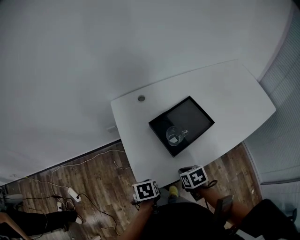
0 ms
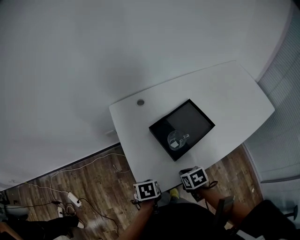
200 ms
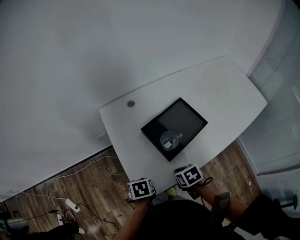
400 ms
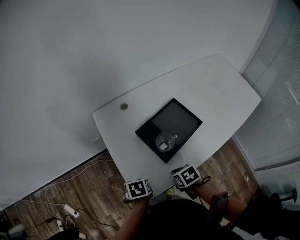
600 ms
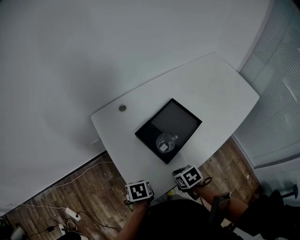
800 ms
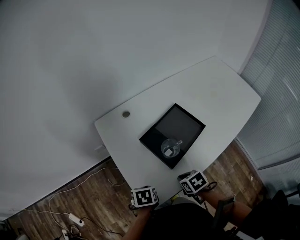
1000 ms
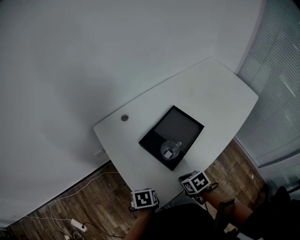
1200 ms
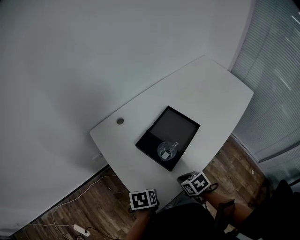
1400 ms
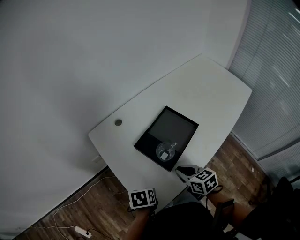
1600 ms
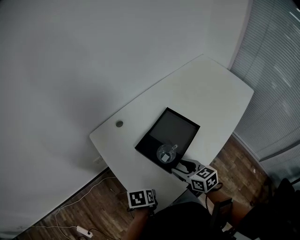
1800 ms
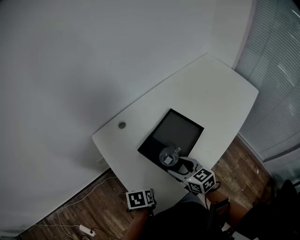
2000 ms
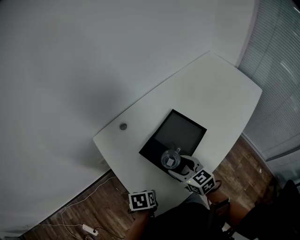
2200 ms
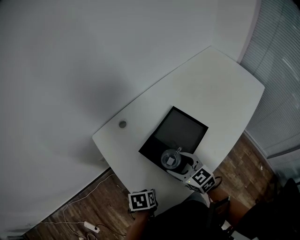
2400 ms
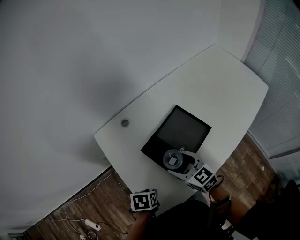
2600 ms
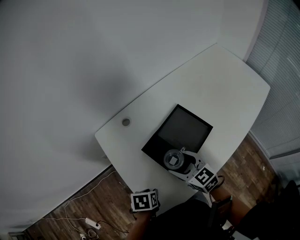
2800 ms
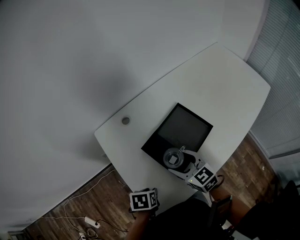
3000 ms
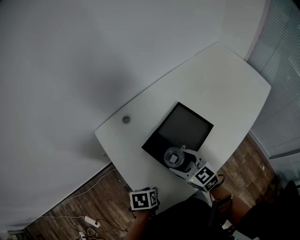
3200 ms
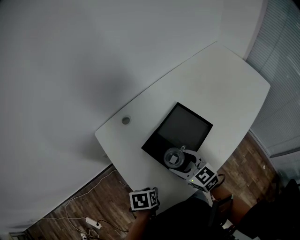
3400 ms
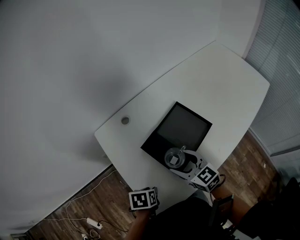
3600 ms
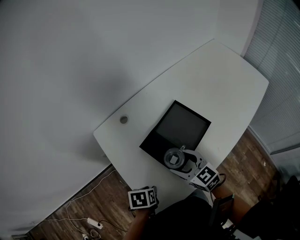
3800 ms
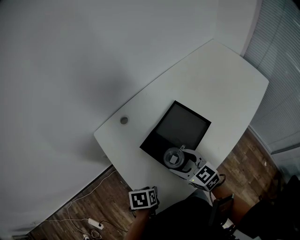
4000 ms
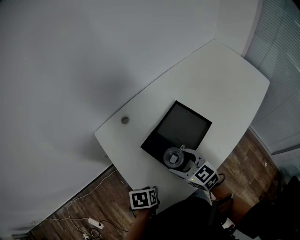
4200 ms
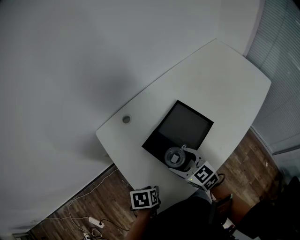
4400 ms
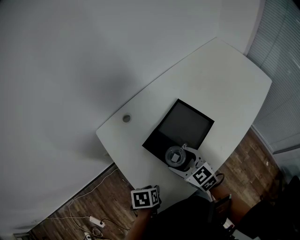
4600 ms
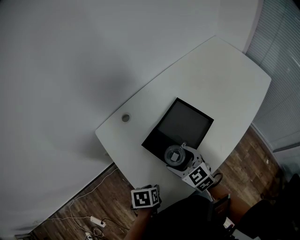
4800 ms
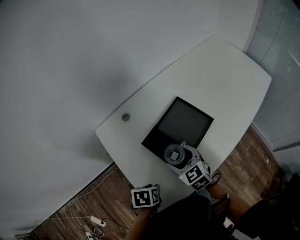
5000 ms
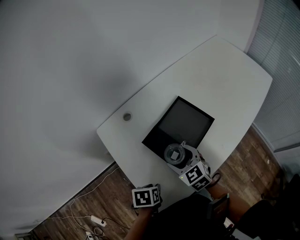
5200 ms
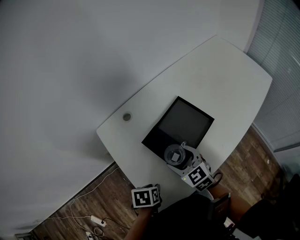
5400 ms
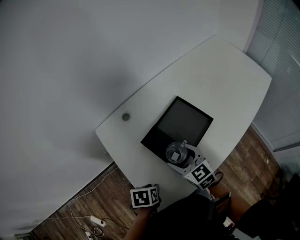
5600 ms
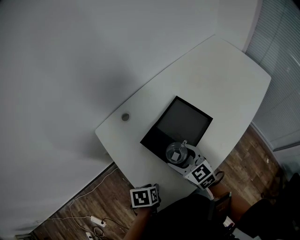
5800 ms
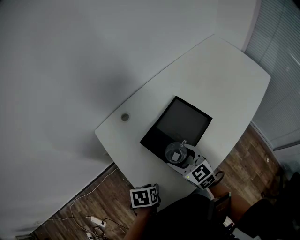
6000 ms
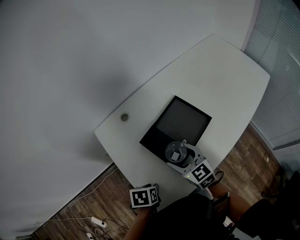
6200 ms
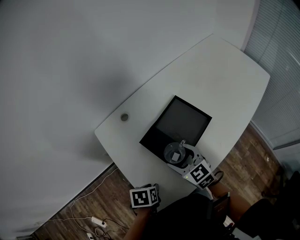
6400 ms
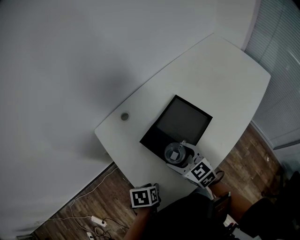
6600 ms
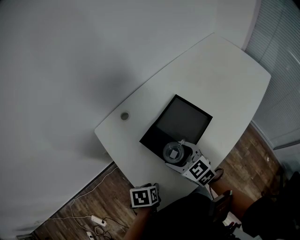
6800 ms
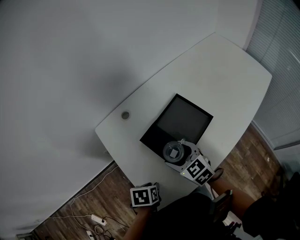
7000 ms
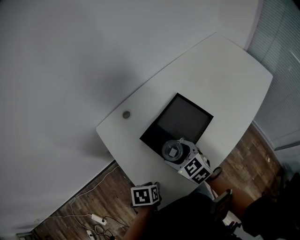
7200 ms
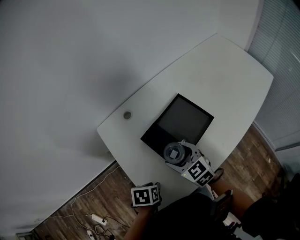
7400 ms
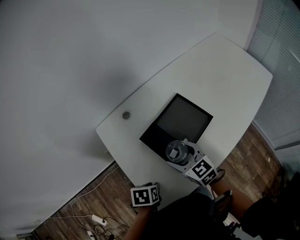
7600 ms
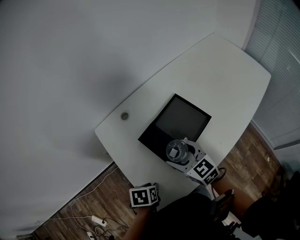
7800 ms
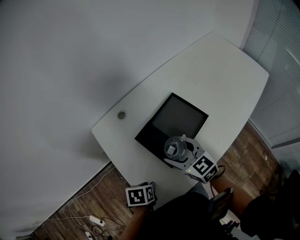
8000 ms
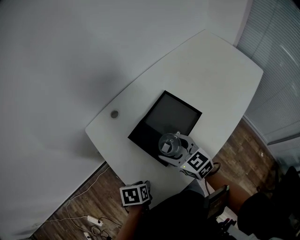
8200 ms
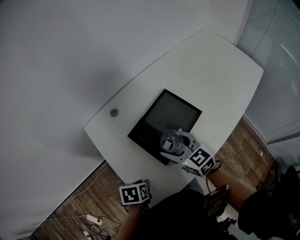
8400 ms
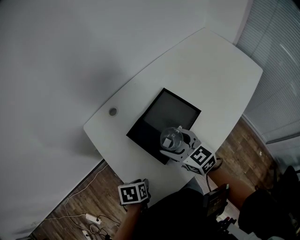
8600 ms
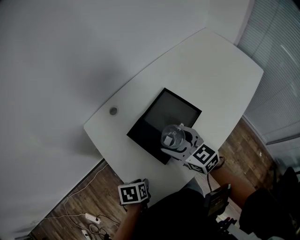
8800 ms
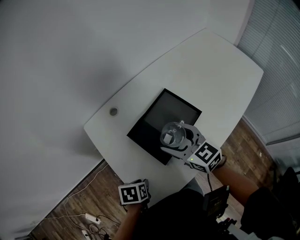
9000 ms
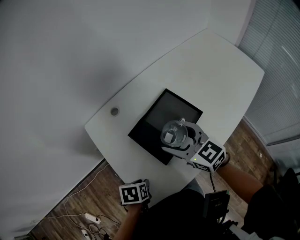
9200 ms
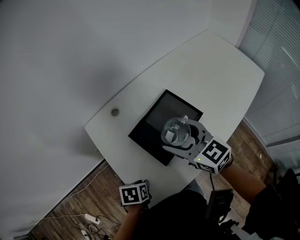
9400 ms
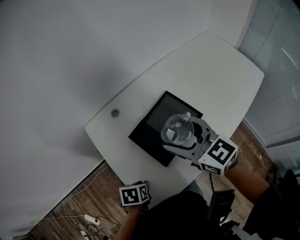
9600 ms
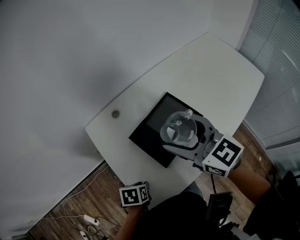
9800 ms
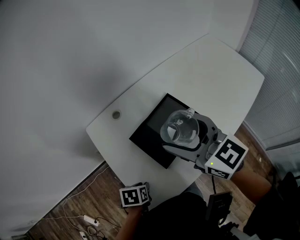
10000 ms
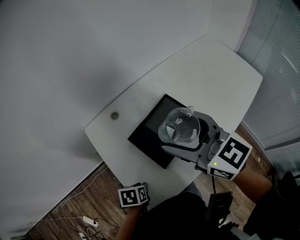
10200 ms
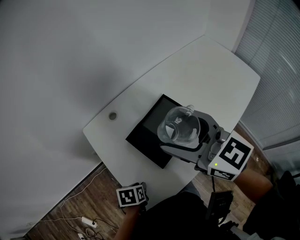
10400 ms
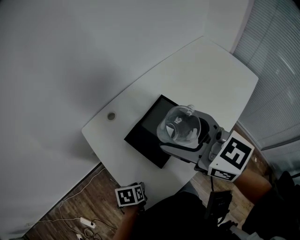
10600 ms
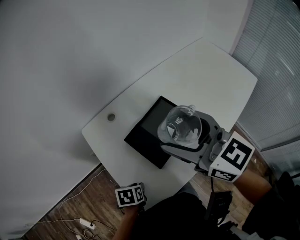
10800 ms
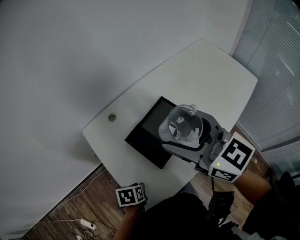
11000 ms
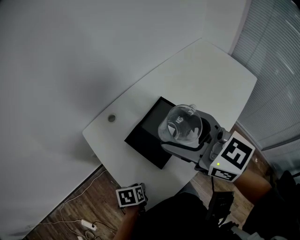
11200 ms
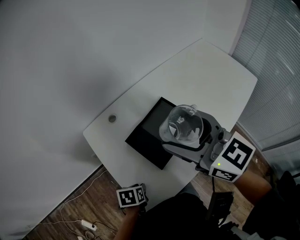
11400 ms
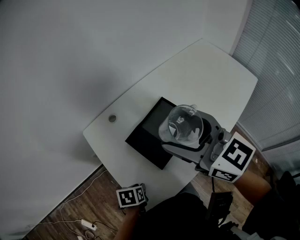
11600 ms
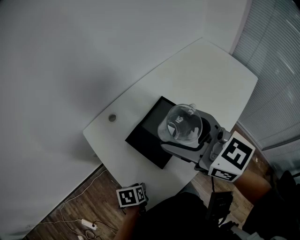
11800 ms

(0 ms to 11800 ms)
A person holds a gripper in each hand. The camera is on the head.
1400 ms - 3000 ms: The right gripper moves some 15 cm, angles its fingers upward, by some 30 degrees, and opens its fingers.
7400 ms - 8800 ms: The right gripper travels upward by approximately 5 cm.
8800 ms - 10400 ms: The right gripper is displaced upward by approximately 20 cm.

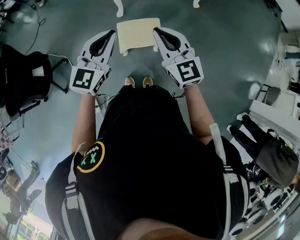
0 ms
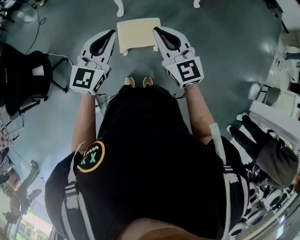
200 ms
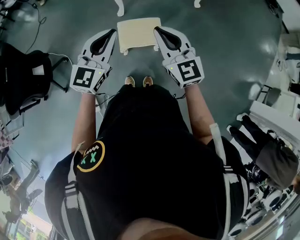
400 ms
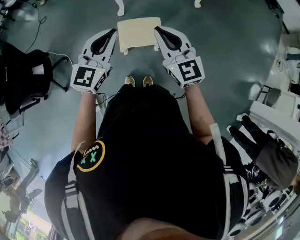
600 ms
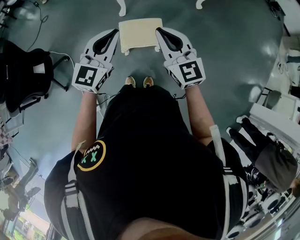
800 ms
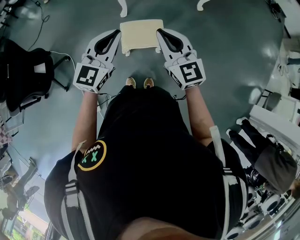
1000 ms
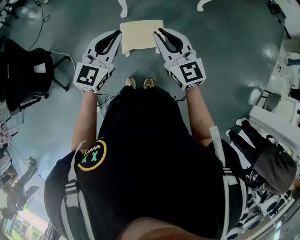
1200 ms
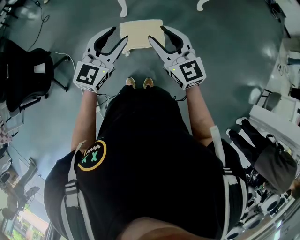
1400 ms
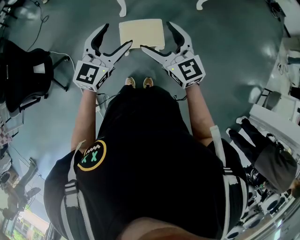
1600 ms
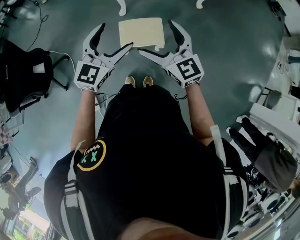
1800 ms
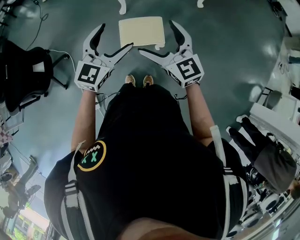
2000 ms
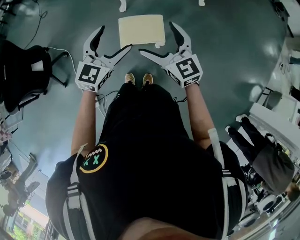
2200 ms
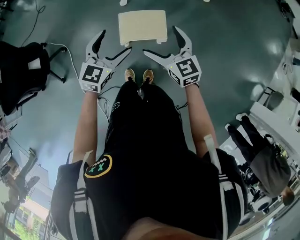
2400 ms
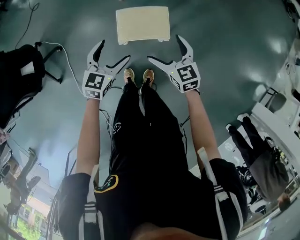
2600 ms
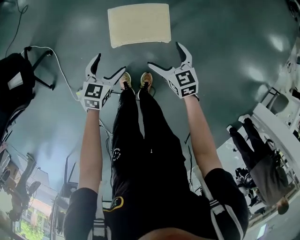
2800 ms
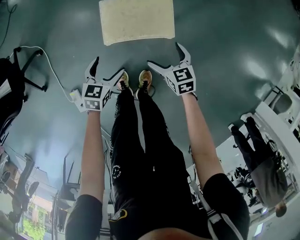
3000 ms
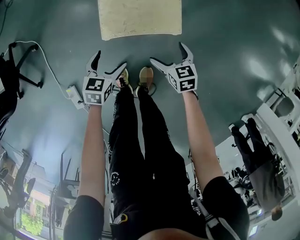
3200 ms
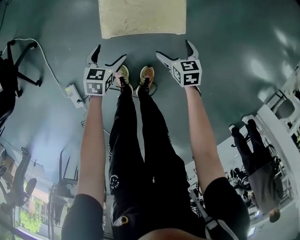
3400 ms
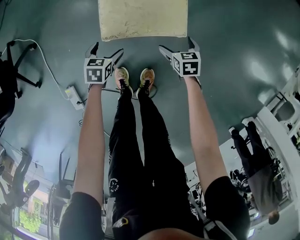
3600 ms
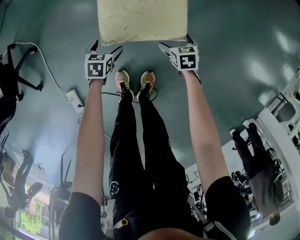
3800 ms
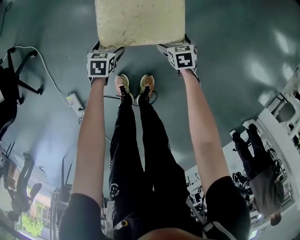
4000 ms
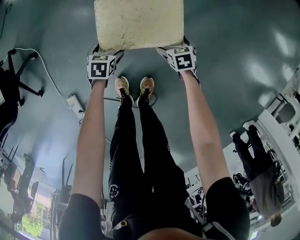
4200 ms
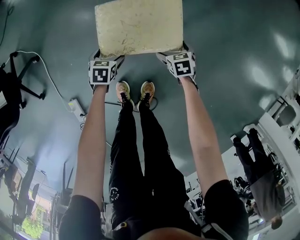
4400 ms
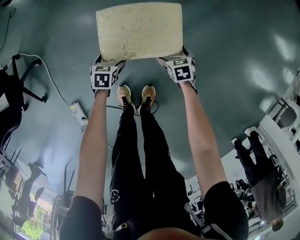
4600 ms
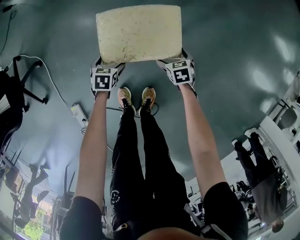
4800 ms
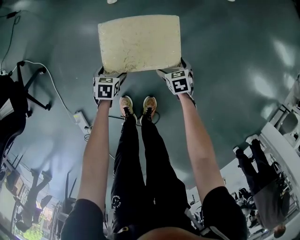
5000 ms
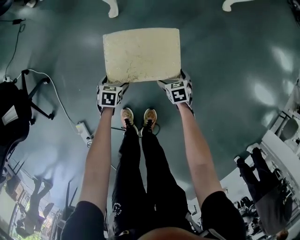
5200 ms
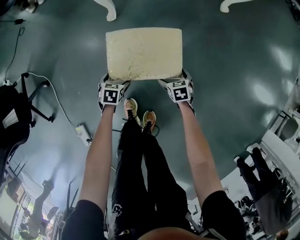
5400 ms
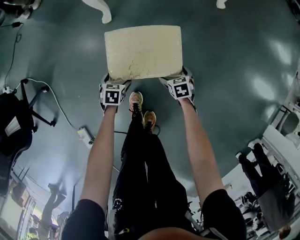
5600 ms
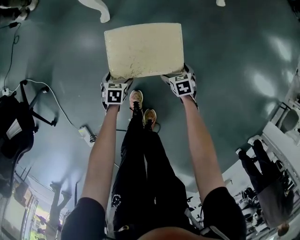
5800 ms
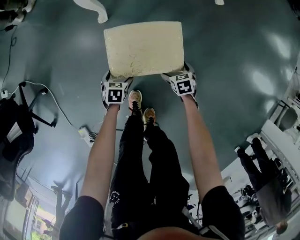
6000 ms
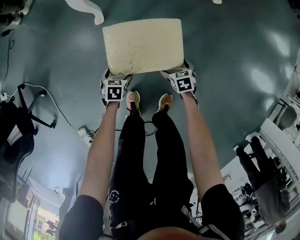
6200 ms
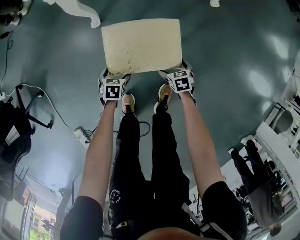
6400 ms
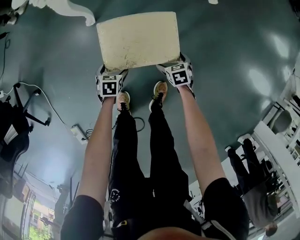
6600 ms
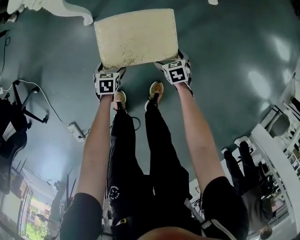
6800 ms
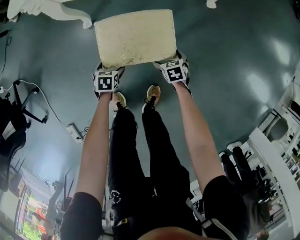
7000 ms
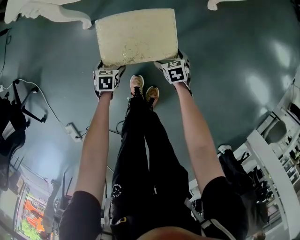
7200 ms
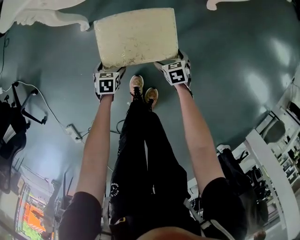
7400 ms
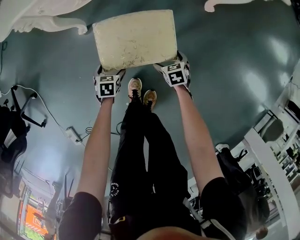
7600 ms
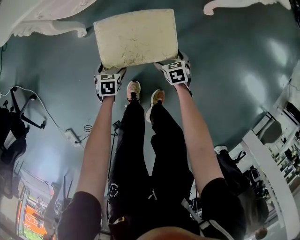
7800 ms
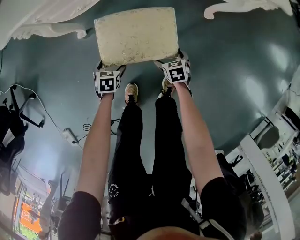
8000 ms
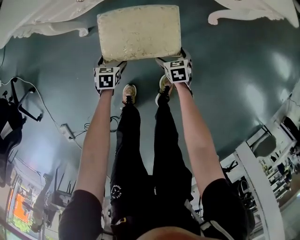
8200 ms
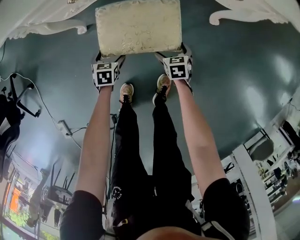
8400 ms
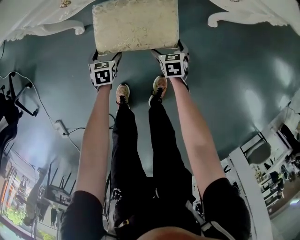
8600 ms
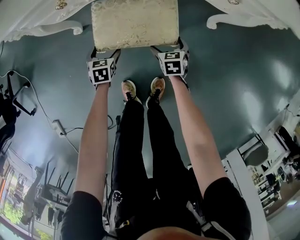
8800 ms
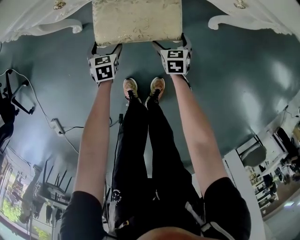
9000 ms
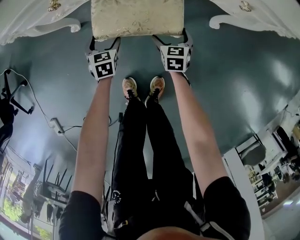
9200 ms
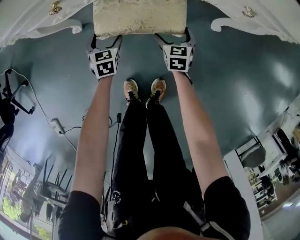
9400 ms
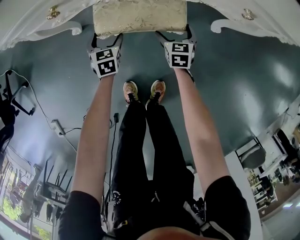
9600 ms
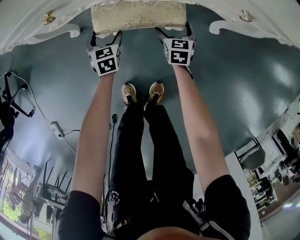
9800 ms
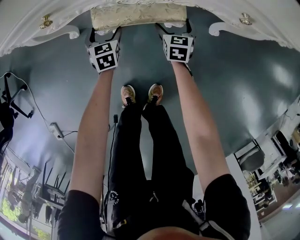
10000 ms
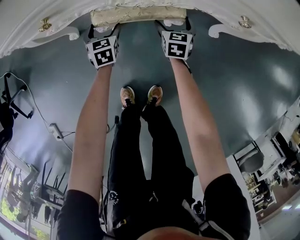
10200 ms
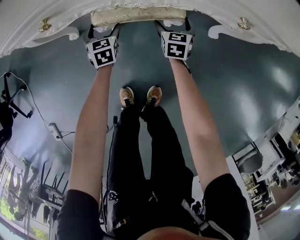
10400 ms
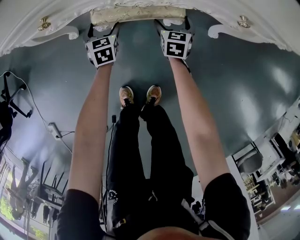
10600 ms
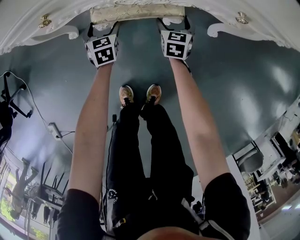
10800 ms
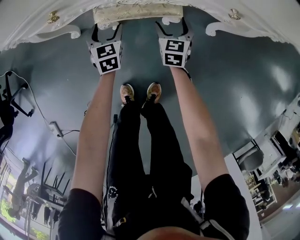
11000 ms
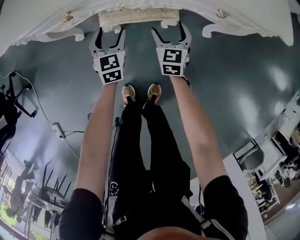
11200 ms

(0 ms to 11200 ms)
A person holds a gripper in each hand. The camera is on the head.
0 ms - 1600 ms: The left gripper opens. The right gripper opens up.
1600 ms - 3200 ms: The two grippers go approximately 60 cm downward. The left gripper tips its fingers downward by about 40 degrees, while the right gripper points its fingers roughly 40 degrees further downward.
3200 ms - 4800 ms: The two grippers go approximately 15 cm downward and forward.
4800 ms - 6400 ms: The grippers both shift forward and to the right by roughly 20 cm.
6400 ms - 8000 ms: Both grippers travel together forward and to the right, roughly 25 cm.
8000 ms - 9600 ms: Both grippers travel together forward, approximately 20 cm. The left gripper changes its angle by approximately 30 degrees.
9600 ms - 11200 ms: Both grippers travel together upward, some 15 cm.

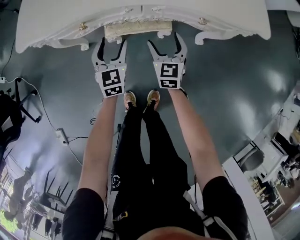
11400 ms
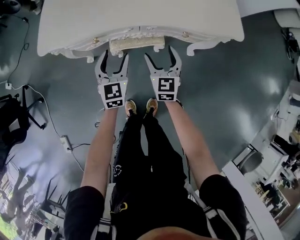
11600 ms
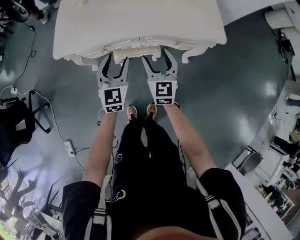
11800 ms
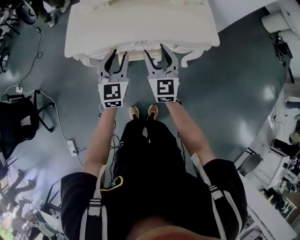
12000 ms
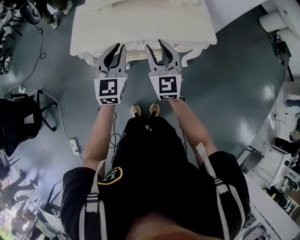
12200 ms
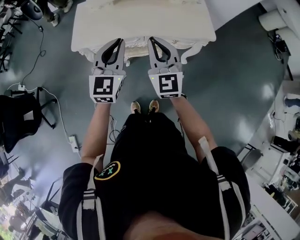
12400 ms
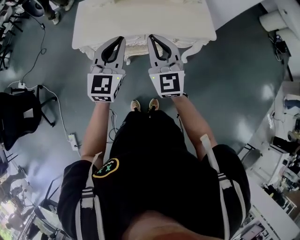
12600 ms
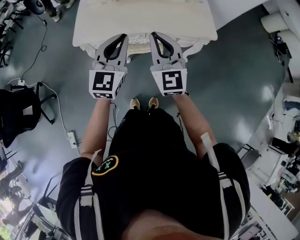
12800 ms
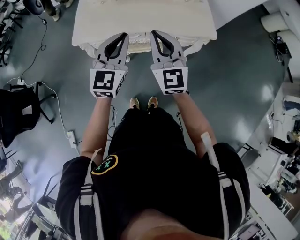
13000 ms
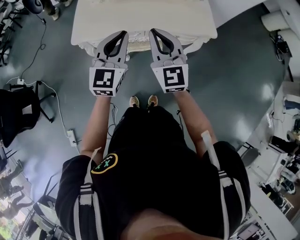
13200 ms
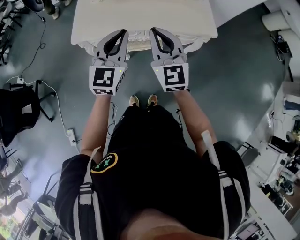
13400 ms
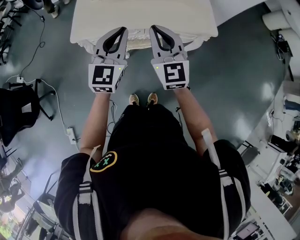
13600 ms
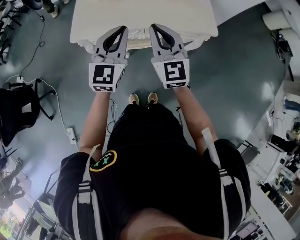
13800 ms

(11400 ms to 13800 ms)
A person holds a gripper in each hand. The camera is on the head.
11400 ms - 12600 ms: The grippers both shift upward by about 50 cm. The right gripper turns by some 30 degrees, and closes its fingers, while the left gripper turns by approximately 30 degrees, and closes up.
12600 ms - 13800 ms: There are only small adjustments of the grippers.
